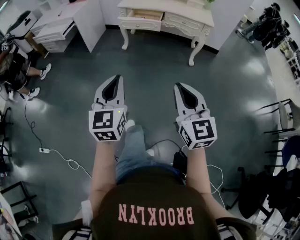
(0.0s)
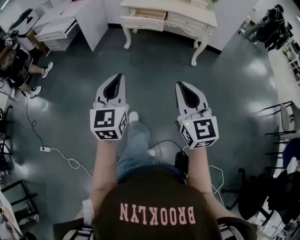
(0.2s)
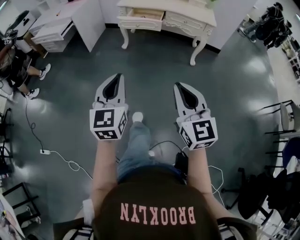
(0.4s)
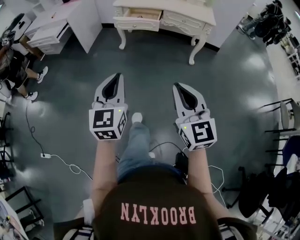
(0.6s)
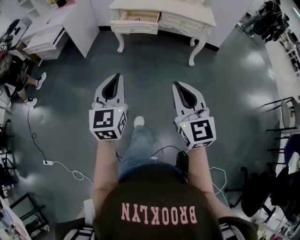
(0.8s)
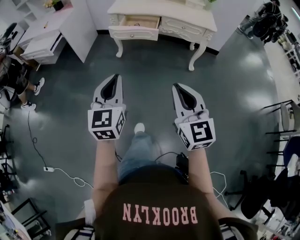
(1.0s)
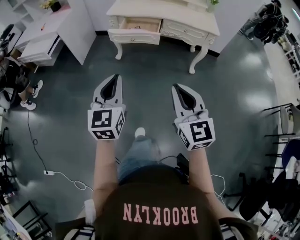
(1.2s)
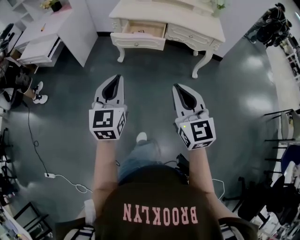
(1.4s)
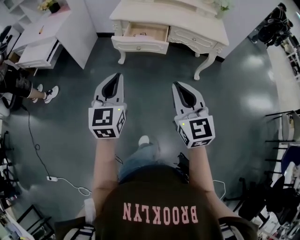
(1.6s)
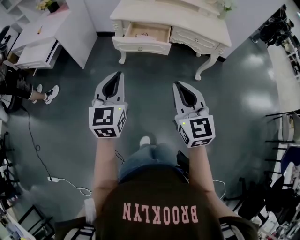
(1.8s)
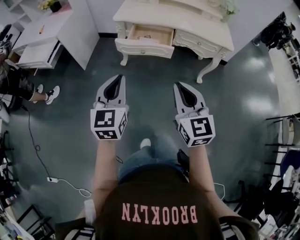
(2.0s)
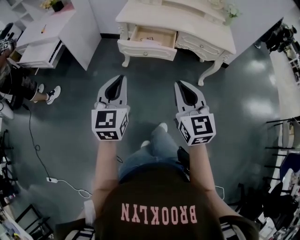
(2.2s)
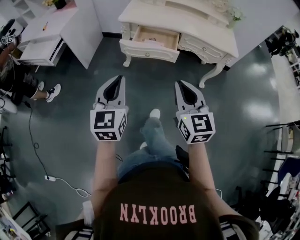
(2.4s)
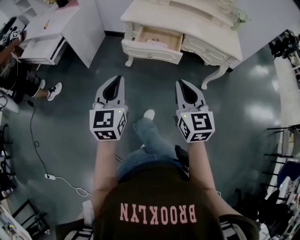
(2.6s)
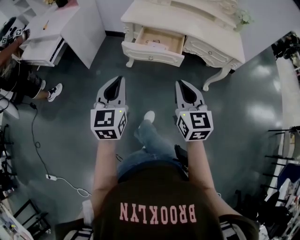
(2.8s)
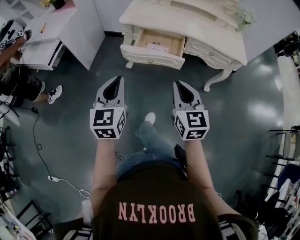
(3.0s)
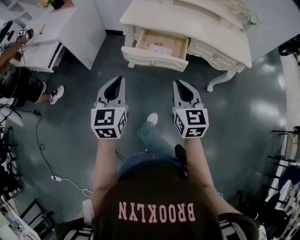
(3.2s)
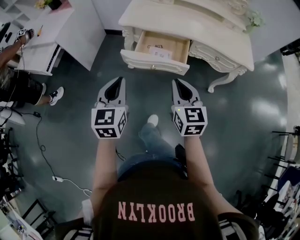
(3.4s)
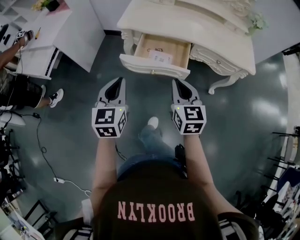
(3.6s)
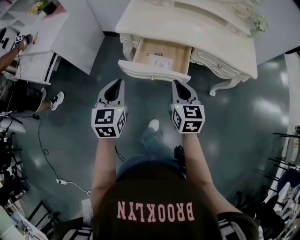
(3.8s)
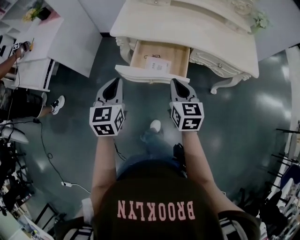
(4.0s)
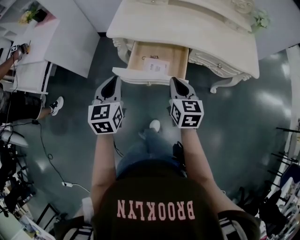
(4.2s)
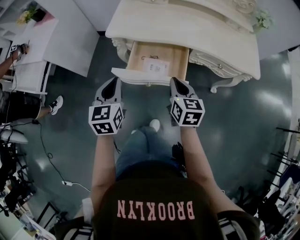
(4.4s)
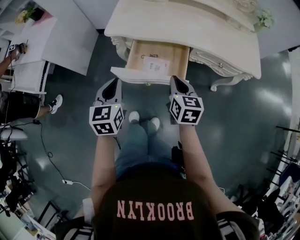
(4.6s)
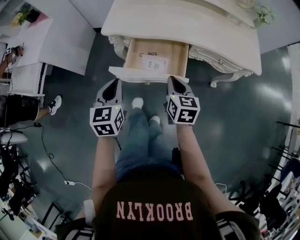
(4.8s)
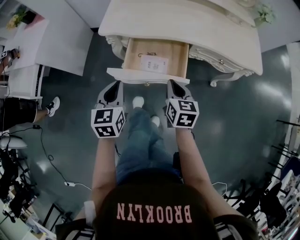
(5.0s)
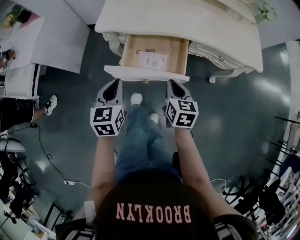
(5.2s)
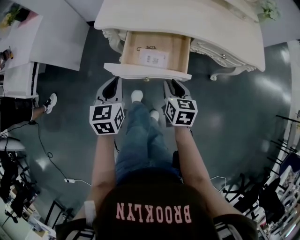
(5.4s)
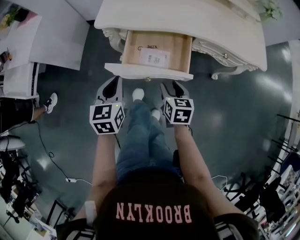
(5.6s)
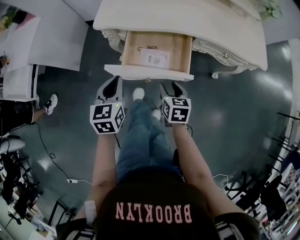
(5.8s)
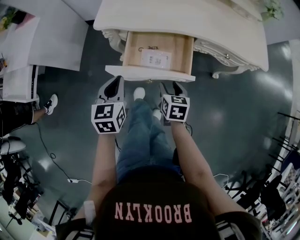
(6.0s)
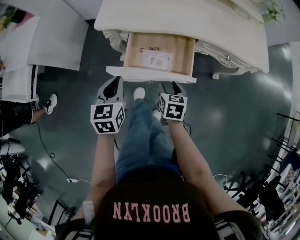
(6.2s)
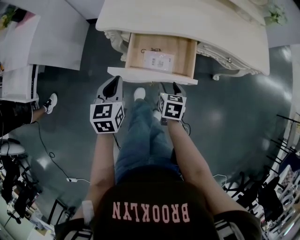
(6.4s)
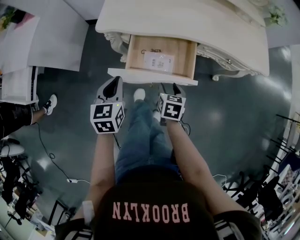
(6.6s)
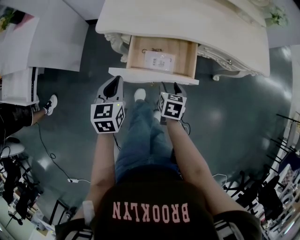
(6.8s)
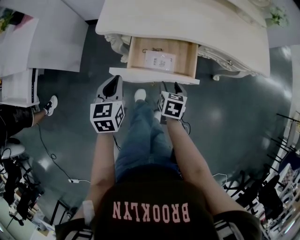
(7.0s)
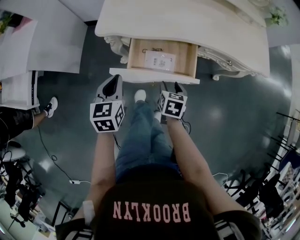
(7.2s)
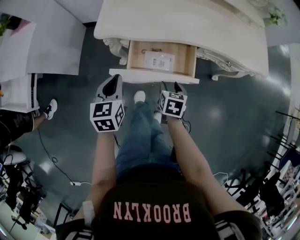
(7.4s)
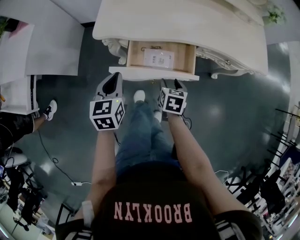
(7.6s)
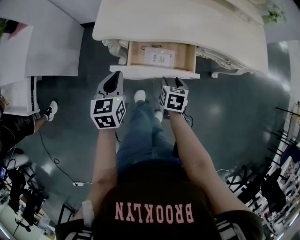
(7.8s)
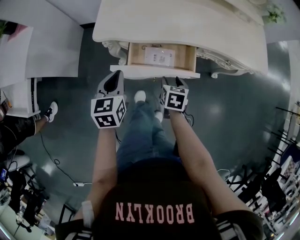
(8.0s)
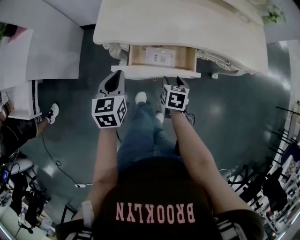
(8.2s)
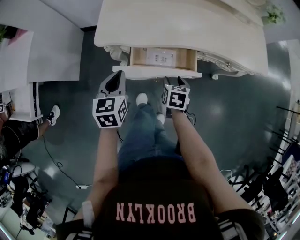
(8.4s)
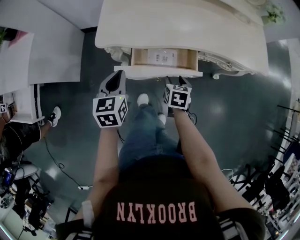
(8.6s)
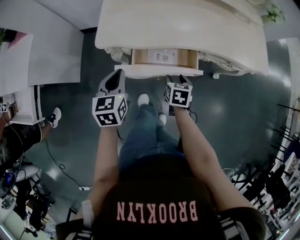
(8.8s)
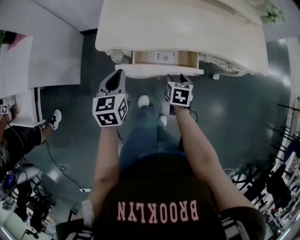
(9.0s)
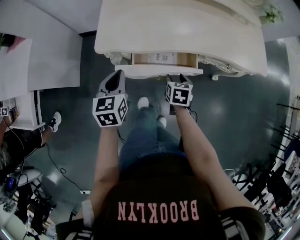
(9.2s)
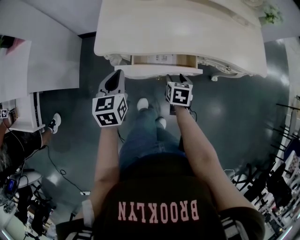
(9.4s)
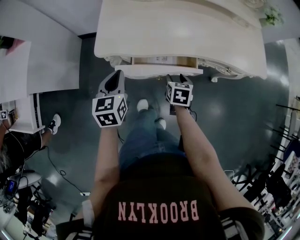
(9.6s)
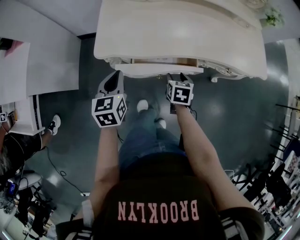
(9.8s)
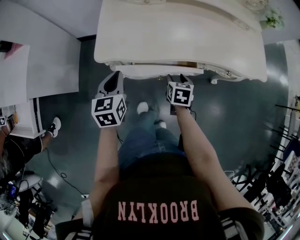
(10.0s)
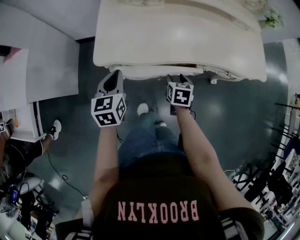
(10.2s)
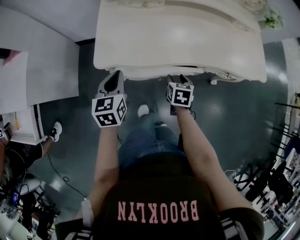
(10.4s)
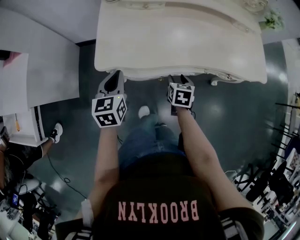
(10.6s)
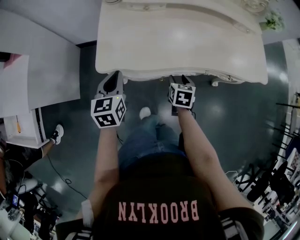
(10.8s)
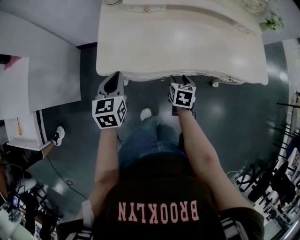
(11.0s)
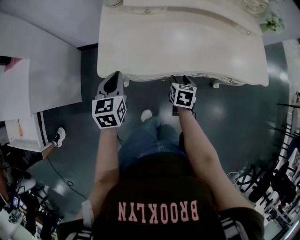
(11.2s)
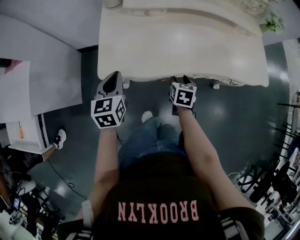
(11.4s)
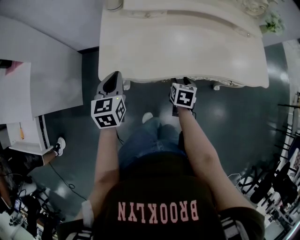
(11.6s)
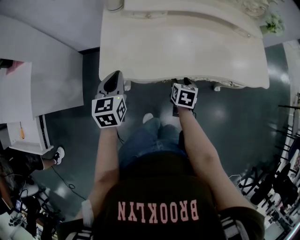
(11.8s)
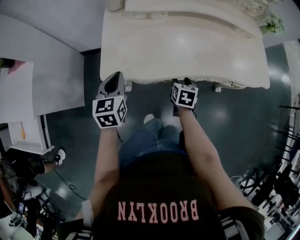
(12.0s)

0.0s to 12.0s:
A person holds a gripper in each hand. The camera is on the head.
0.0s to 1.6s: The grippers both shift forward by some 40 cm.
1.6s to 3.0s: The two grippers go approximately 15 cm forward.
3.0s to 4.4s: The right gripper goes some 25 cm forward and downward, and changes its angle by about 20 degrees, while the left gripper moves forward, some 25 cm.
4.4s to 6.0s: The left gripper shifts approximately 10 cm downward. The right gripper moves downward, some 15 cm, swivels roughly 20 degrees, and opens its fingers.
6.0s to 7.6s: Both grippers travel together forward, approximately 5 cm.
7.6s to 9.0s: Both grippers move forward, approximately 5 cm.
9.0s to 10.4s: The grippers both shift forward by about 5 cm.
10.4s to 12.0s: The left gripper moves approximately 5 cm.

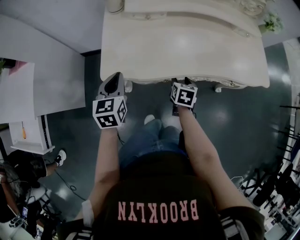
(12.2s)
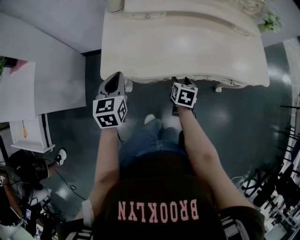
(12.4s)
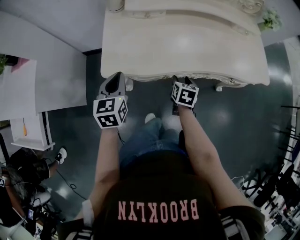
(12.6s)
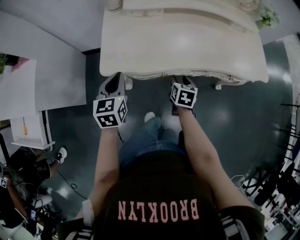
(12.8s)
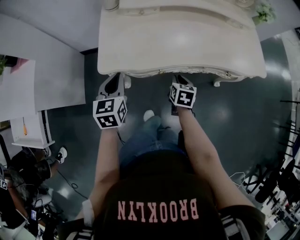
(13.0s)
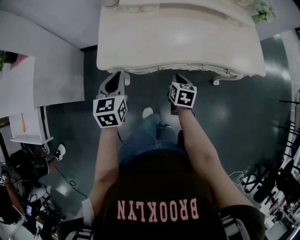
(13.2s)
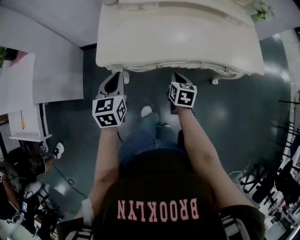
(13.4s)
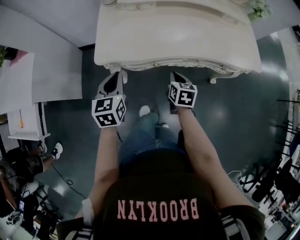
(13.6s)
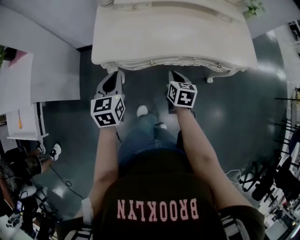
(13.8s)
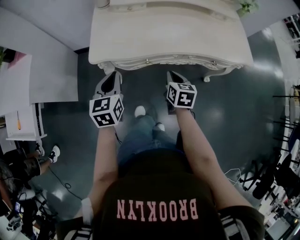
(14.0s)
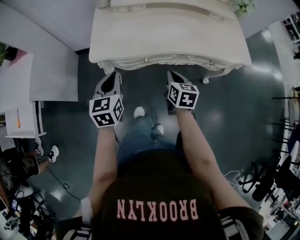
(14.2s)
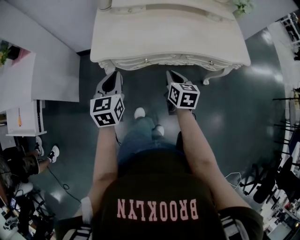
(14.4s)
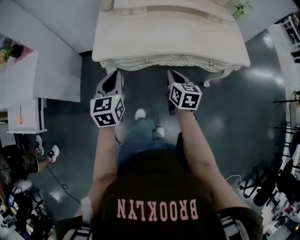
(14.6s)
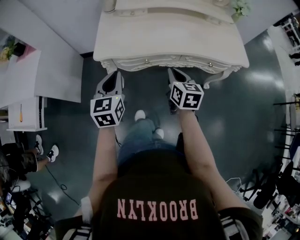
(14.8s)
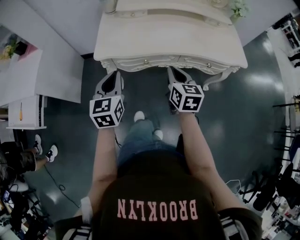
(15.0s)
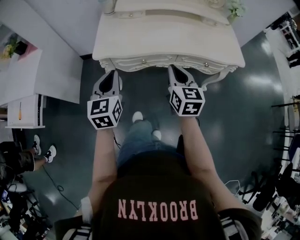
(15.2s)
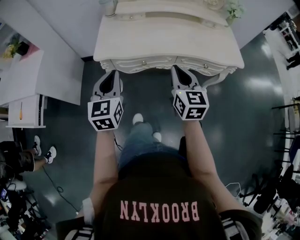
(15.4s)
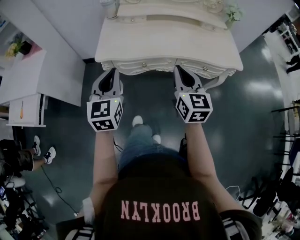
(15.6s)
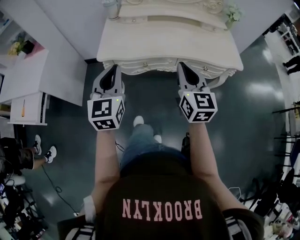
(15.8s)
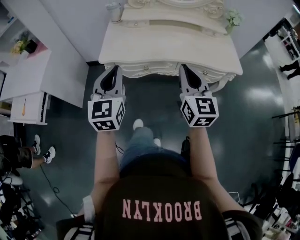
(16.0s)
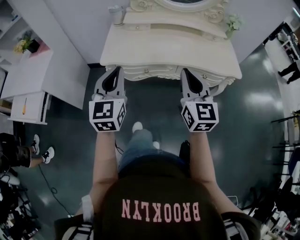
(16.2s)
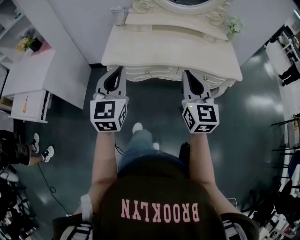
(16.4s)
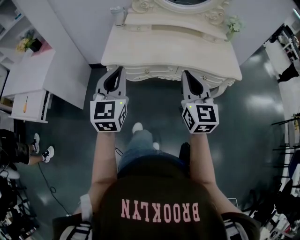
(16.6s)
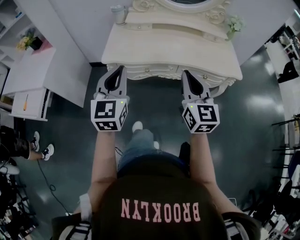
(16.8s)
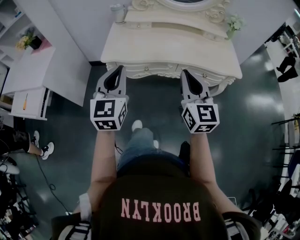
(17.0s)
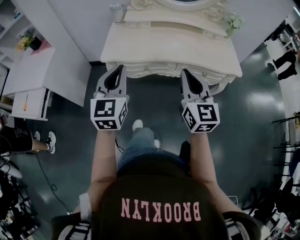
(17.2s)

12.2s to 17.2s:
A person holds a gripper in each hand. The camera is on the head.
12.2s to 13.8s: The left gripper shifts approximately 10 cm backward and to the right; the right gripper heads backward and upward, covering some 10 cm, and closes.
13.8s to 15.6s: Both grippers move upward and backward, approximately 20 cm. The left gripper rotates about 20 degrees. The right gripper points its fingers approximately 30 degrees further upward.
15.6s to 17.2s: The right gripper shifts some 10 cm upward and backward. Meanwhile the left gripper moves some 5 cm.

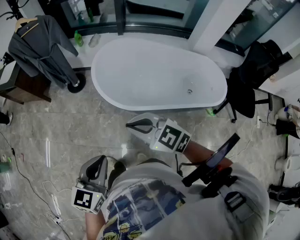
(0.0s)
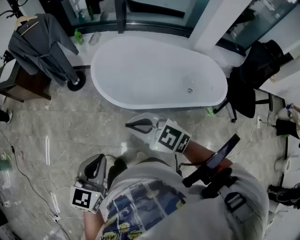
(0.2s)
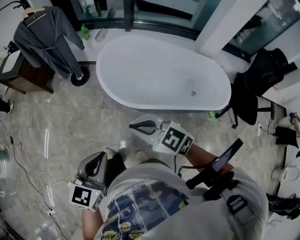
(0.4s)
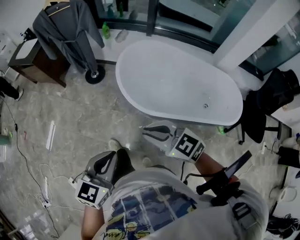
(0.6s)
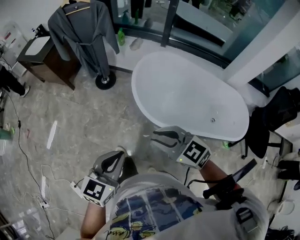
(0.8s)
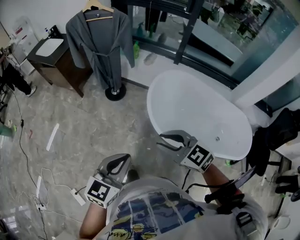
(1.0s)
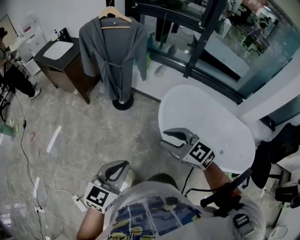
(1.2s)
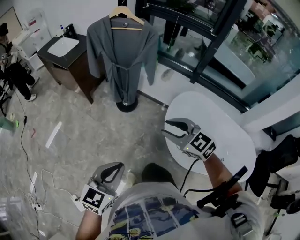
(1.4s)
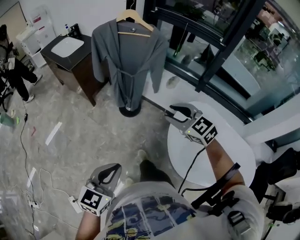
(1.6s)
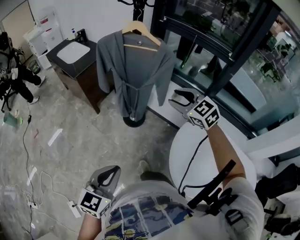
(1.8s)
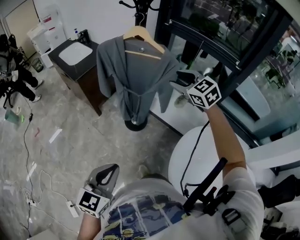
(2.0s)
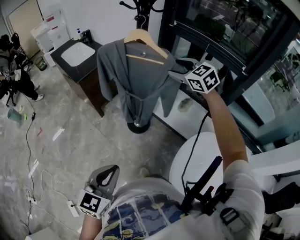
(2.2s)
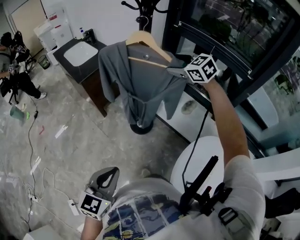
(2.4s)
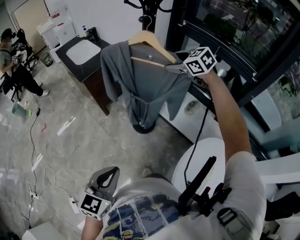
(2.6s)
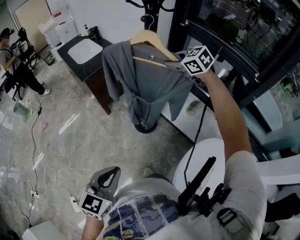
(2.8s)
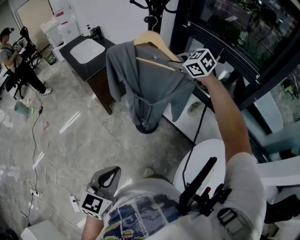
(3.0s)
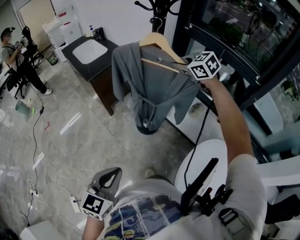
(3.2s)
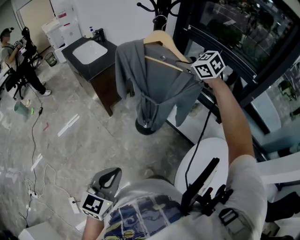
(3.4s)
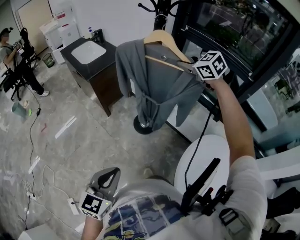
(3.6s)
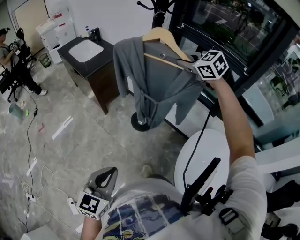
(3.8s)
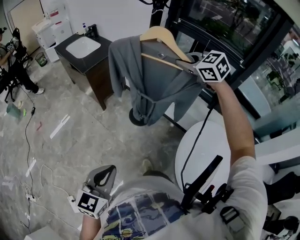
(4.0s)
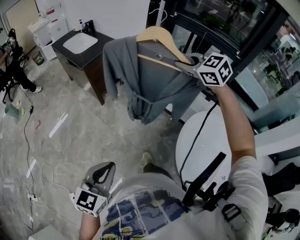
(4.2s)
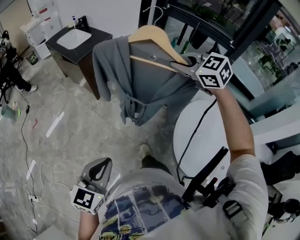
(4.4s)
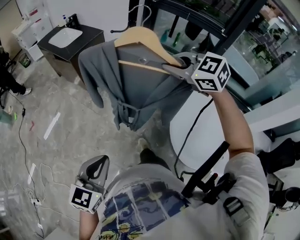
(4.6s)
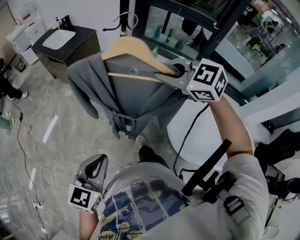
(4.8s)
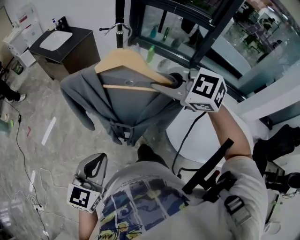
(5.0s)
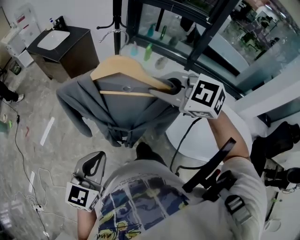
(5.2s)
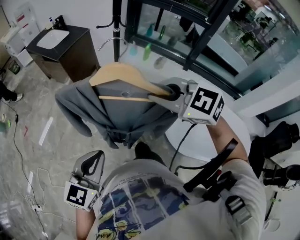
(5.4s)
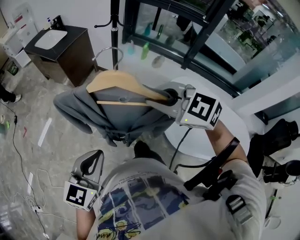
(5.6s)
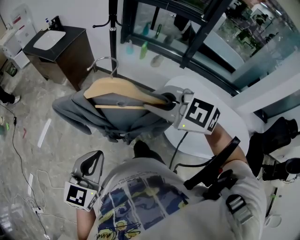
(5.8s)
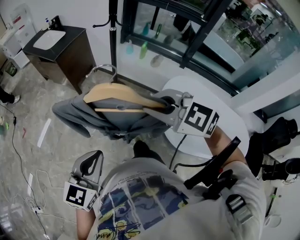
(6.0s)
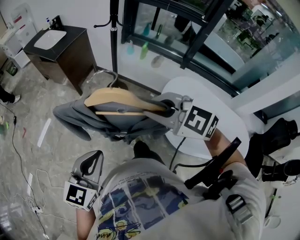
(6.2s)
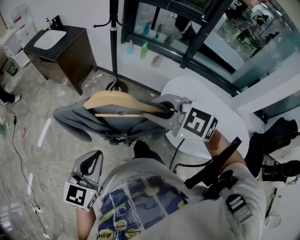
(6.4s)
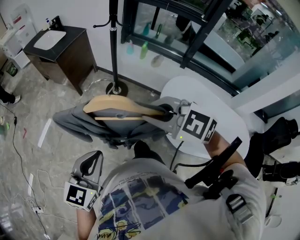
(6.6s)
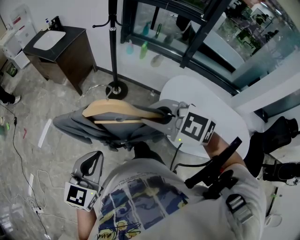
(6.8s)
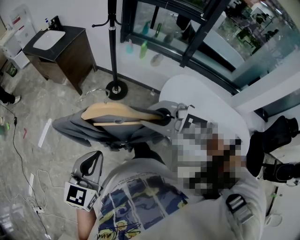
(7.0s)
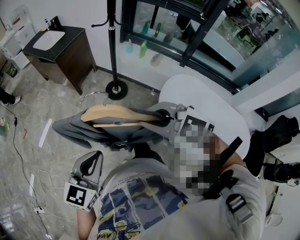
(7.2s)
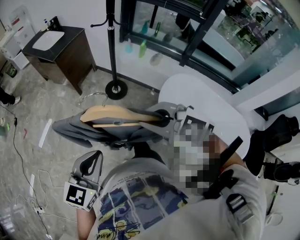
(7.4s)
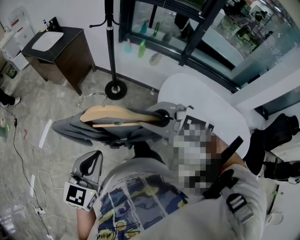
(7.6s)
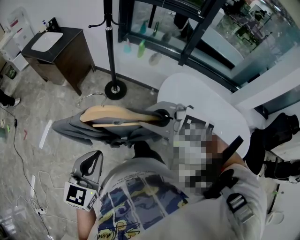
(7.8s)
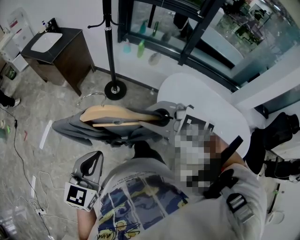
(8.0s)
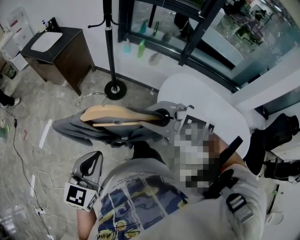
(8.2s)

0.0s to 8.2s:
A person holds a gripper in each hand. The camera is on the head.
0.0s to 1.6s: The left gripper heads forward and to the left, covering some 40 cm. The right gripper shifts some 50 cm forward, and opens its fingers.
1.6s to 3.2s: The right gripper moves forward, about 40 cm, and closes. The left gripper is displaced forward by some 20 cm.
3.2s to 5.0s: The right gripper goes some 50 cm backward. The left gripper travels backward and to the left by about 20 cm.
5.0s to 6.6s: The right gripper heads backward and to the left, covering about 10 cm.
6.6s to 8.2s: The grippers make only small movements.
